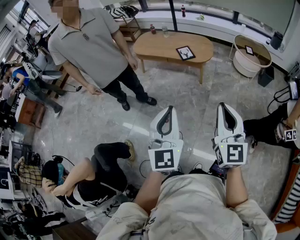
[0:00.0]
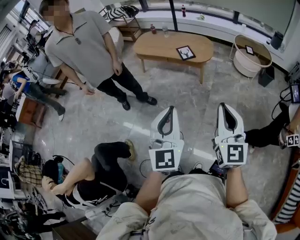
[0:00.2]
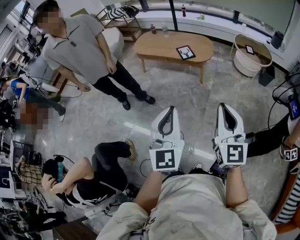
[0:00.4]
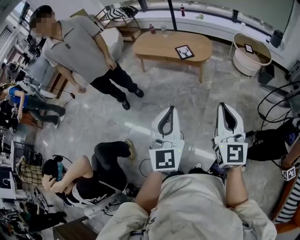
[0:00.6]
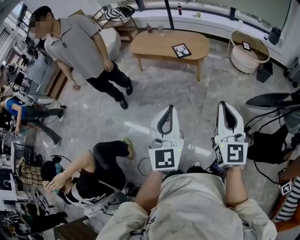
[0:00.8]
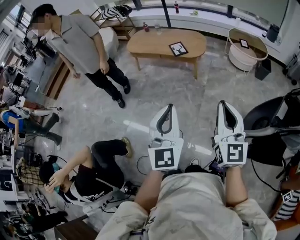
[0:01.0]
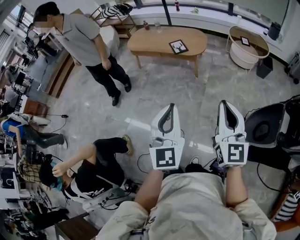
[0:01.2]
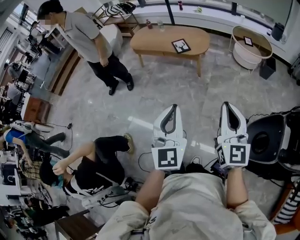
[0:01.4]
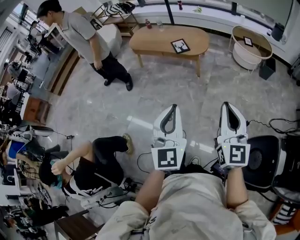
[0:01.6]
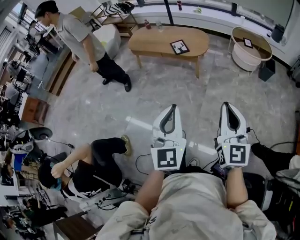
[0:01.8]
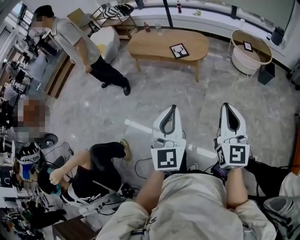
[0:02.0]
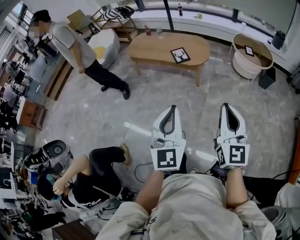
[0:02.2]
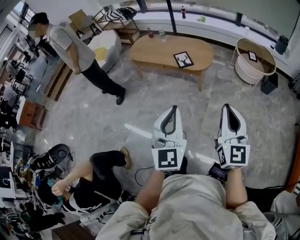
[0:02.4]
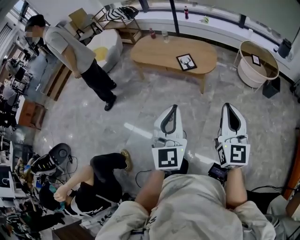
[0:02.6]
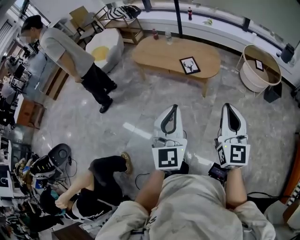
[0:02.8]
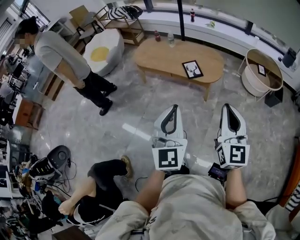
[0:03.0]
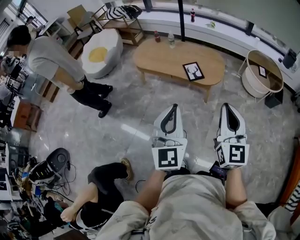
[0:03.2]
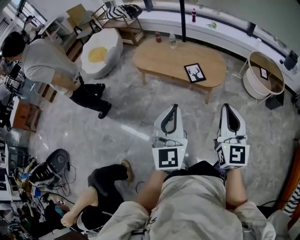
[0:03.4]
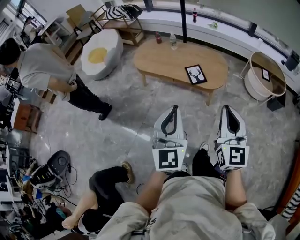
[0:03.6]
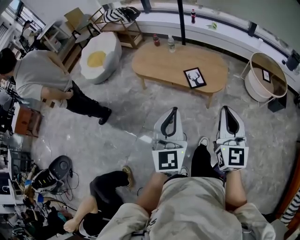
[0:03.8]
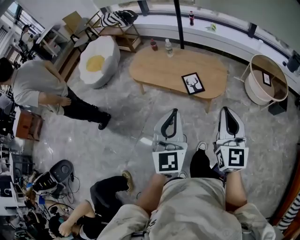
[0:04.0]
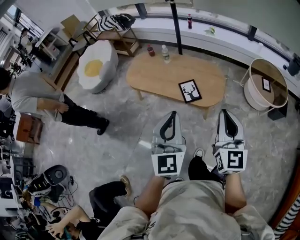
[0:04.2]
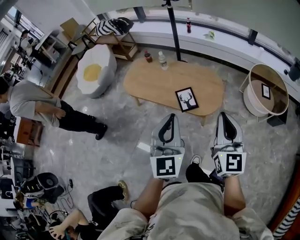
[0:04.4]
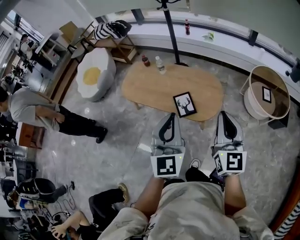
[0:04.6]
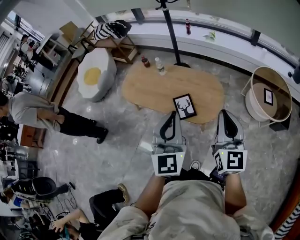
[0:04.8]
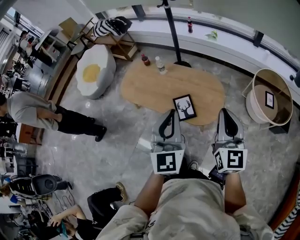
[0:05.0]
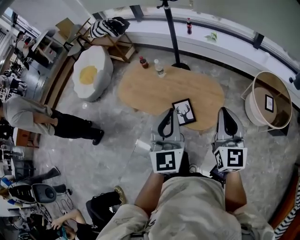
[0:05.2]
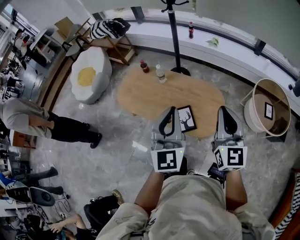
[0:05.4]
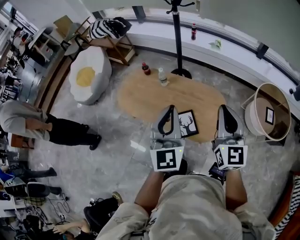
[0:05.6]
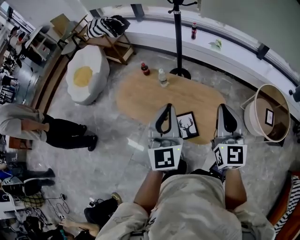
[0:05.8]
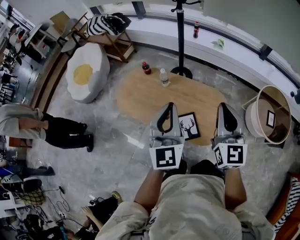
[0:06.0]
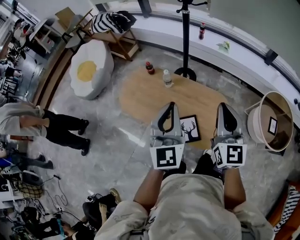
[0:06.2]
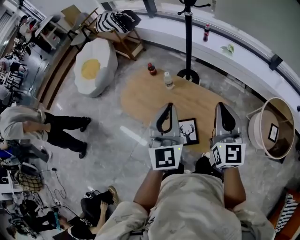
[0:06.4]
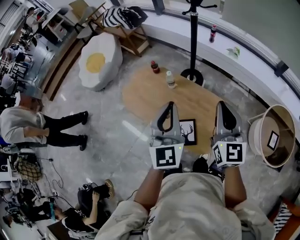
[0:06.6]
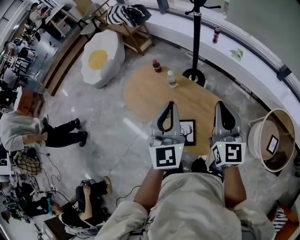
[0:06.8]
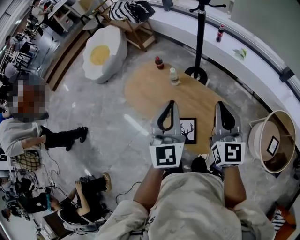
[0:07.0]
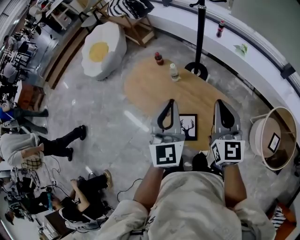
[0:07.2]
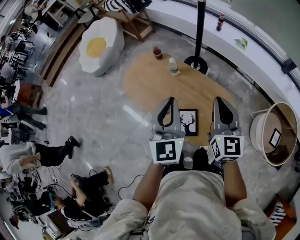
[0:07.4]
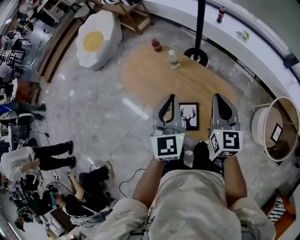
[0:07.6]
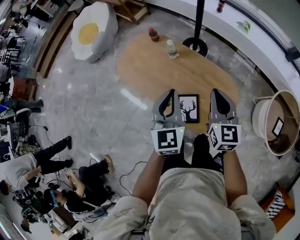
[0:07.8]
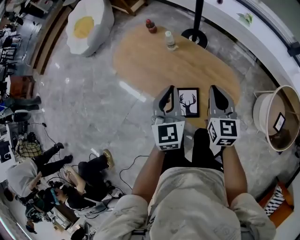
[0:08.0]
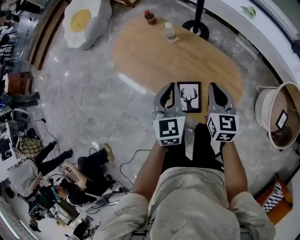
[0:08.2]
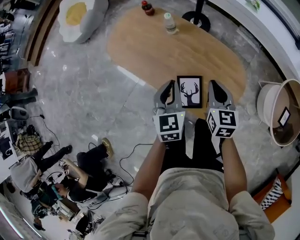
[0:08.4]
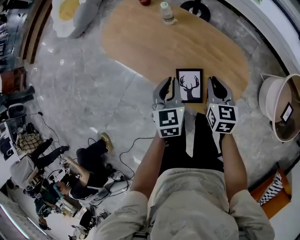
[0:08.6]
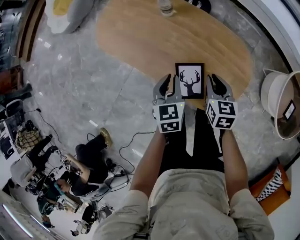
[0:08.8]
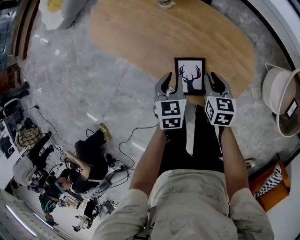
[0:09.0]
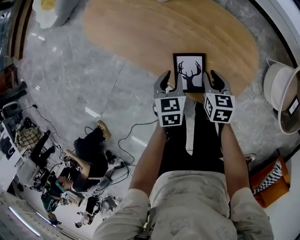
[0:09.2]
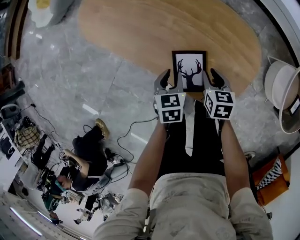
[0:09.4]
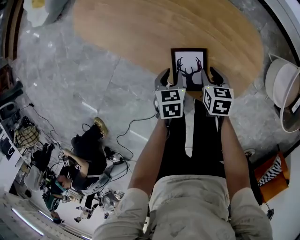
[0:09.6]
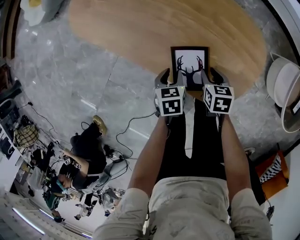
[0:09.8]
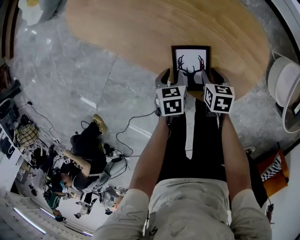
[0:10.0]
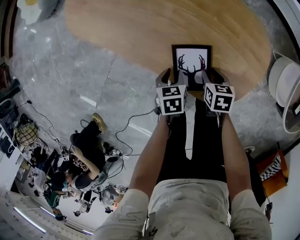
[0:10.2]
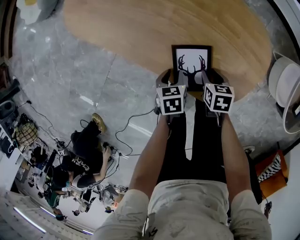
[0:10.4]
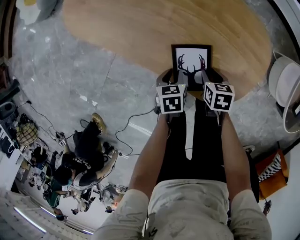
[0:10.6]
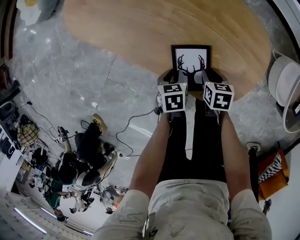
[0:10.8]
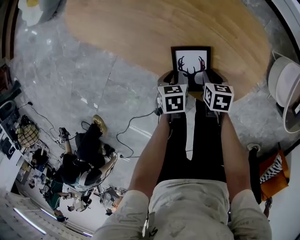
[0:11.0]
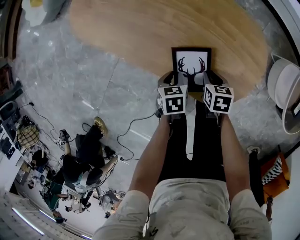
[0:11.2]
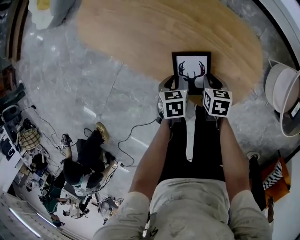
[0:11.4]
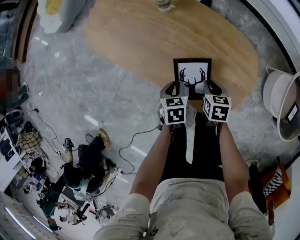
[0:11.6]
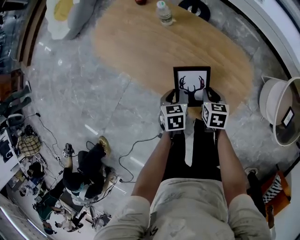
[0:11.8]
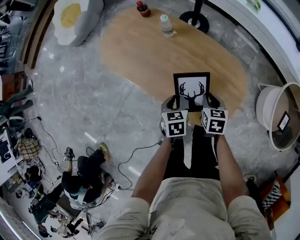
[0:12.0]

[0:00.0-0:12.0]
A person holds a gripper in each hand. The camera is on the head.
0:00.0 to 0:01.6: The grippers both shift to the right by roughly 10 cm.
0:01.6 to 0:03.0: The two grippers go some 30 cm forward.
0:03.0 to 0:04.4: The grippers both shift forward by roughly 30 cm.
0:04.4 to 0:06.0: Both grippers move forward, some 35 cm.
0:06.0 to 0:07.6: The right gripper is displaced downward and forward by some 15 cm; the left gripper shifts roughly 10 cm downward.
0:07.6 to 0:09.0: Both grippers move downward, some 35 cm. The left gripper tips its fingers downward by some 40 degrees, and opens up. Meanwhile the right gripper angles its fingers downward, by approximately 40 degrees.
0:09.0 to 0:10.4: The grippers both shift downward by approximately 20 cm. The right gripper rotates approximately 20 degrees; the left gripper turns by about 30 degrees.
0:10.4 to 0:12.0: Both grippers travel together upward, roughly 20 cm.

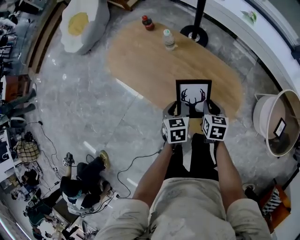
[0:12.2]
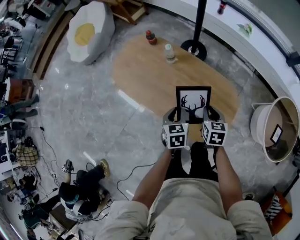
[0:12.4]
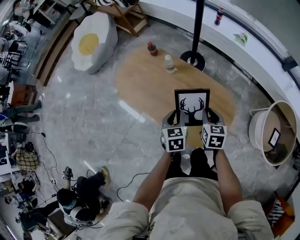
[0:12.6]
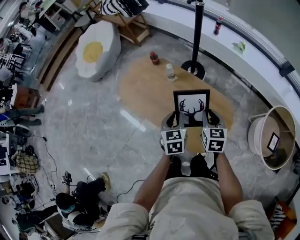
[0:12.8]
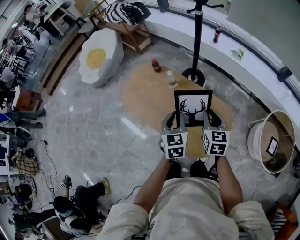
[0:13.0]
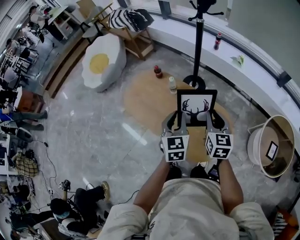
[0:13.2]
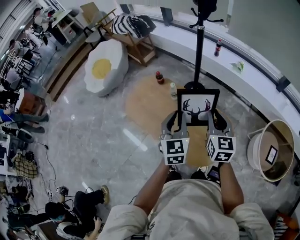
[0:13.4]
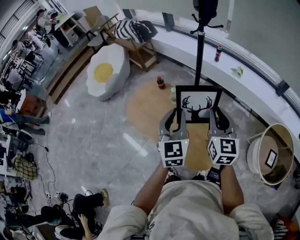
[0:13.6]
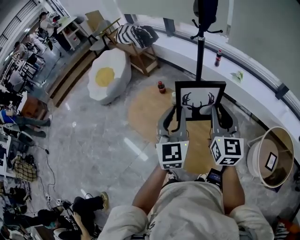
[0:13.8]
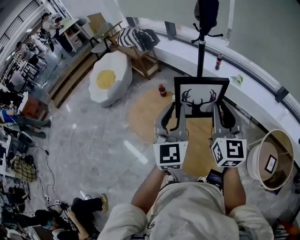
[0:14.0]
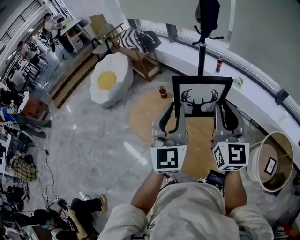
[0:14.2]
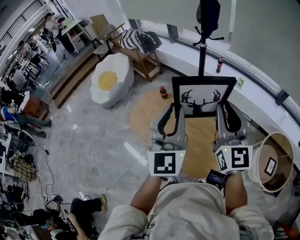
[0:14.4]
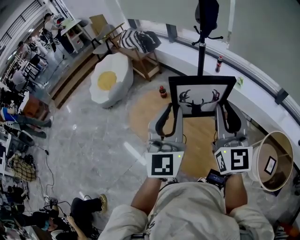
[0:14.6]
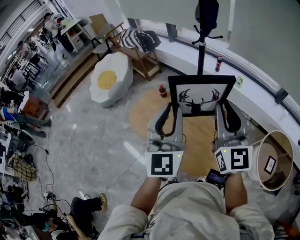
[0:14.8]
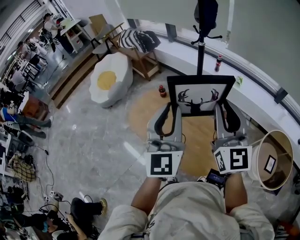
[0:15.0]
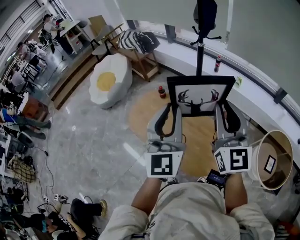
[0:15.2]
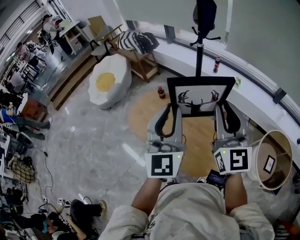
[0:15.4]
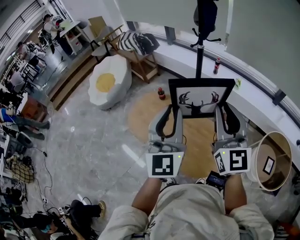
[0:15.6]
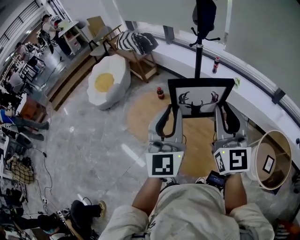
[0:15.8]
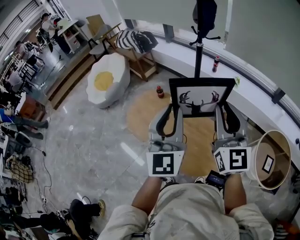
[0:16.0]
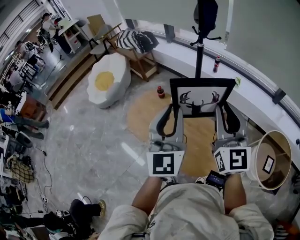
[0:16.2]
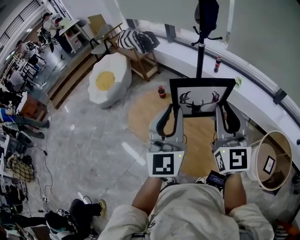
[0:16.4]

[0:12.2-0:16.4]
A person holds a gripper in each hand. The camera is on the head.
0:12.2 to 0:13.6: The grippers both shift upward by about 40 cm. The right gripper points its fingers about 40 degrees further upward; the left gripper points its fingers some 40 degrees further upward.
0:13.6 to 0:15.0: The two grippers go approximately 15 cm upward. The right gripper changes its angle by approximately 20 degrees.
0:15.0 to 0:16.4: Both grippers stay about where they are.

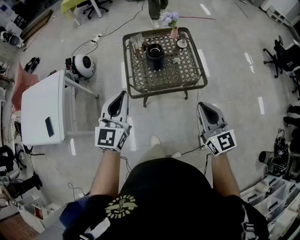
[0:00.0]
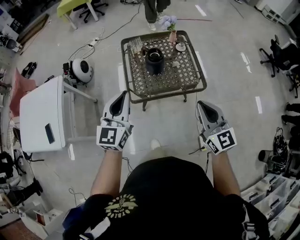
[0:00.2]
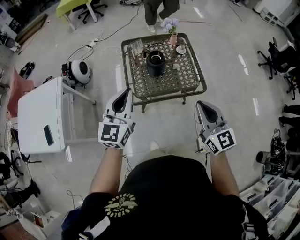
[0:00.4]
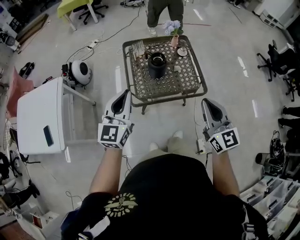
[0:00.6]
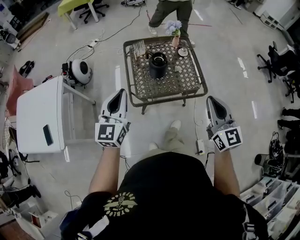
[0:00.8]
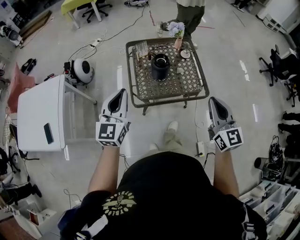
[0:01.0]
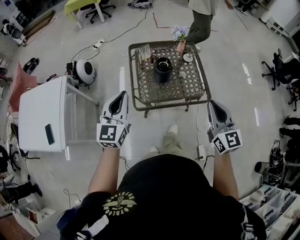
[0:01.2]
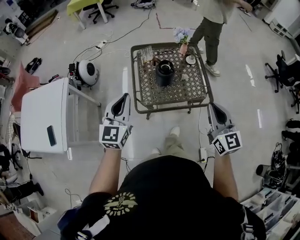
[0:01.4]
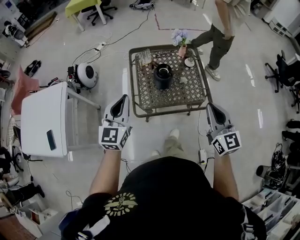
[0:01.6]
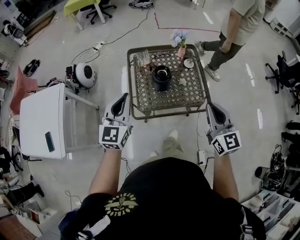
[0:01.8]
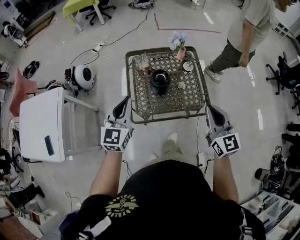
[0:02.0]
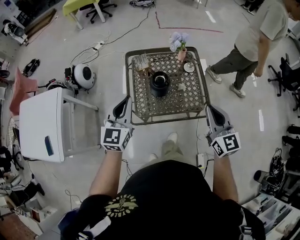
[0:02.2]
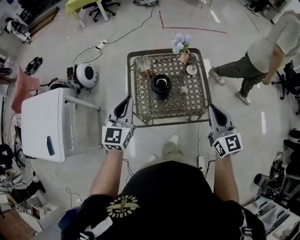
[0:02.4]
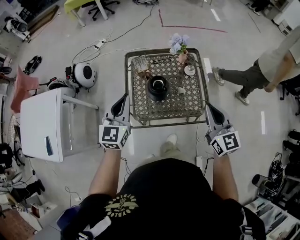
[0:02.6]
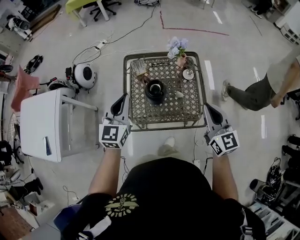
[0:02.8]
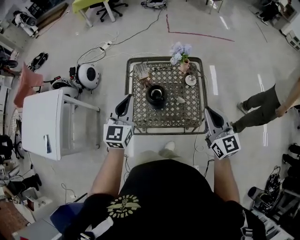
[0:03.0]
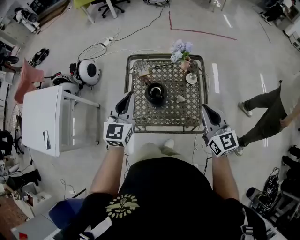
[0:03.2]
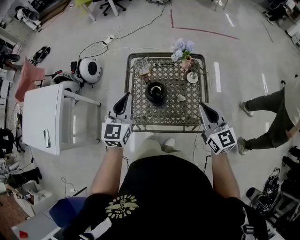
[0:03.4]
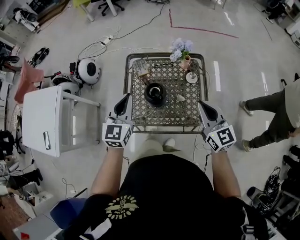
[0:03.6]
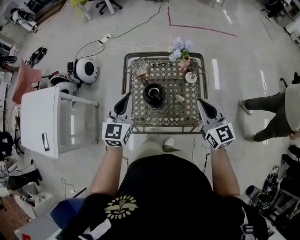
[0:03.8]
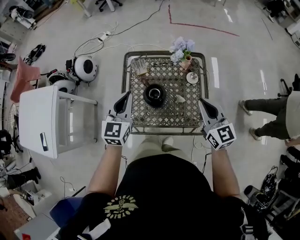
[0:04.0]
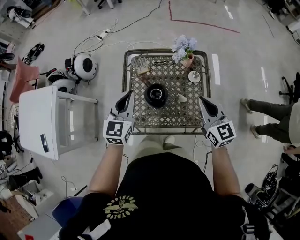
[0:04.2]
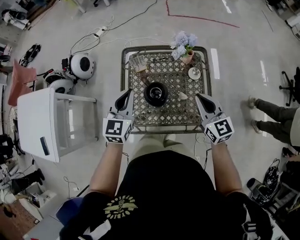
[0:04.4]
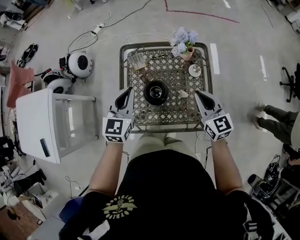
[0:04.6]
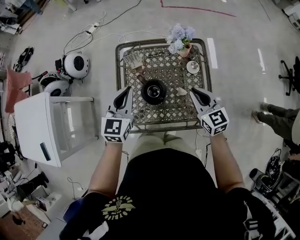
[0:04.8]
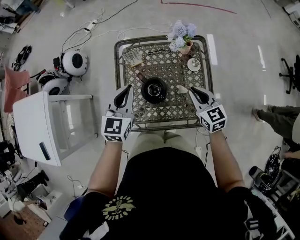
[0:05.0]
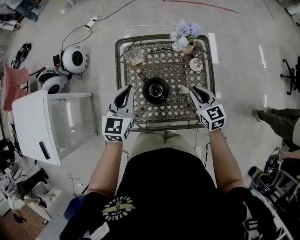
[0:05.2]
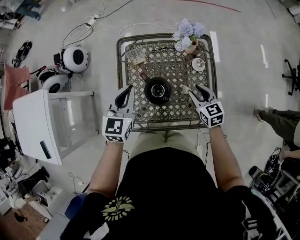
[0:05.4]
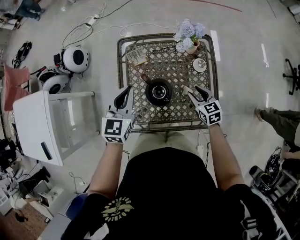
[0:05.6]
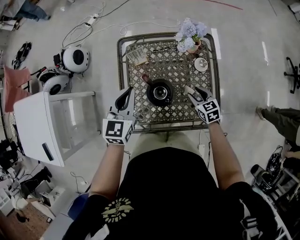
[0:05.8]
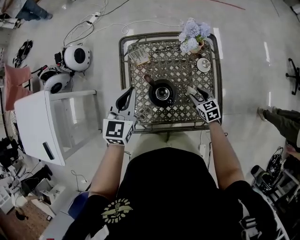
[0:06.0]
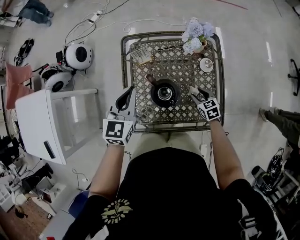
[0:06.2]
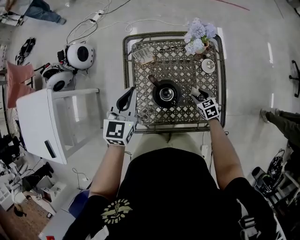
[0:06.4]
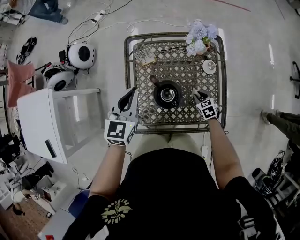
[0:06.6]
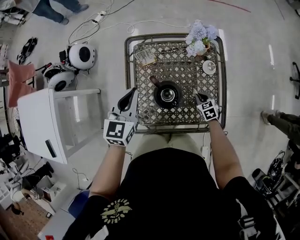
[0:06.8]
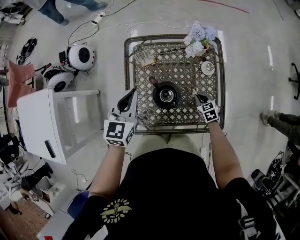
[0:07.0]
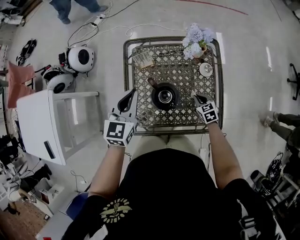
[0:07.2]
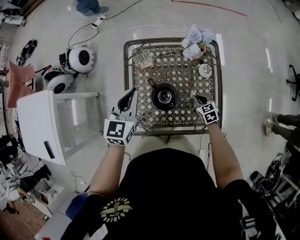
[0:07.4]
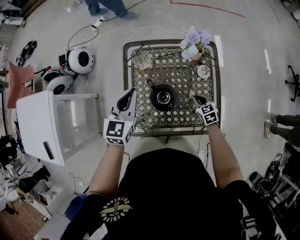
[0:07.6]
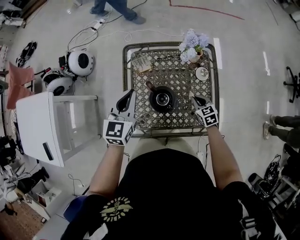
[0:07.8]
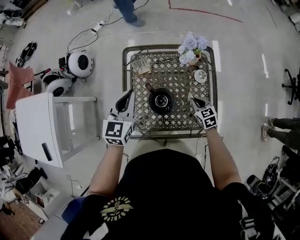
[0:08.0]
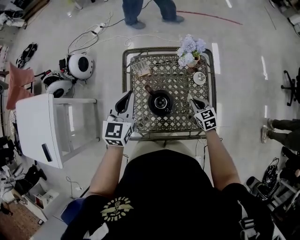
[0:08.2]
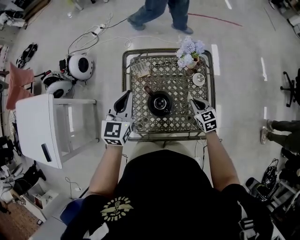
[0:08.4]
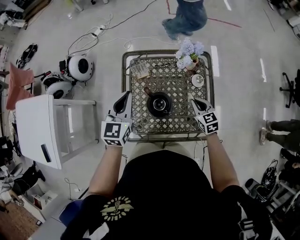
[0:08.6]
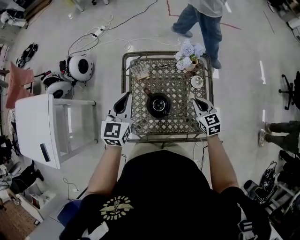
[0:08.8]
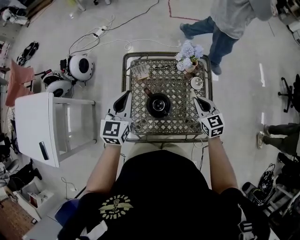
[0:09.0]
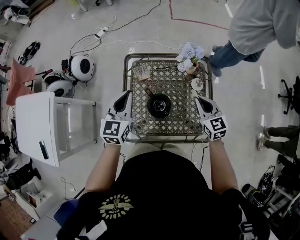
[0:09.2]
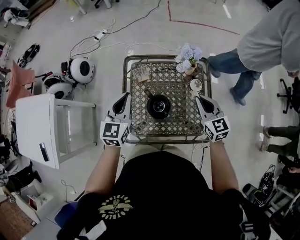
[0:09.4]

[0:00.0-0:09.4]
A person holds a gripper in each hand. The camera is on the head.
0:00.0 to 0:01.6: The left gripper heads forward and to the left, covering some 15 cm, while the right gripper goes approximately 15 cm forward.
0:01.6 to 0:03.2: Both grippers travel together forward and to the right, some 20 cm.
0:03.2 to 0:04.8: Both grippers move downward and forward, some 15 cm.
0:04.8 to 0:06.2: The right gripper goes some 25 cm downward, changes its angle by roughly 30 degrees, and opens its fingers; the left gripper moves about 5 cm.
0:06.2 to 0:07.8: The right gripper closes its fingers.
0:07.8 to 0:09.4: The right gripper is displaced upward by some 20 cm, and swivels some 30 degrees.
